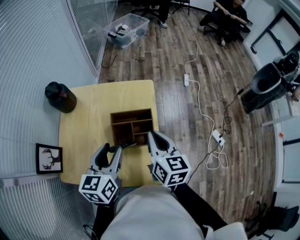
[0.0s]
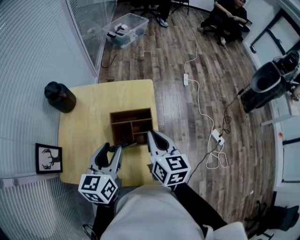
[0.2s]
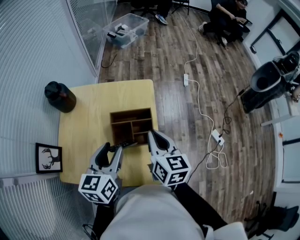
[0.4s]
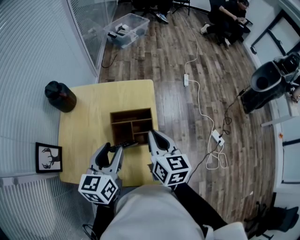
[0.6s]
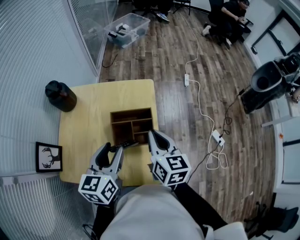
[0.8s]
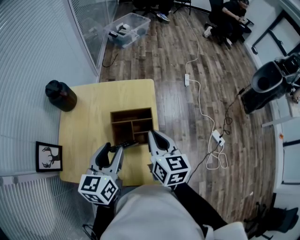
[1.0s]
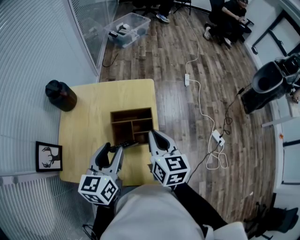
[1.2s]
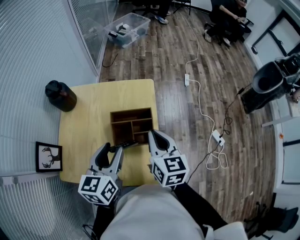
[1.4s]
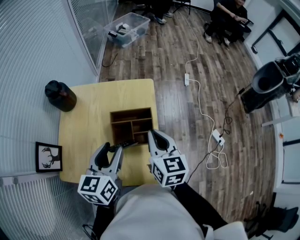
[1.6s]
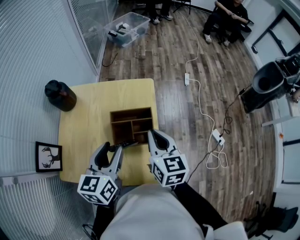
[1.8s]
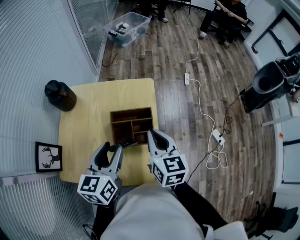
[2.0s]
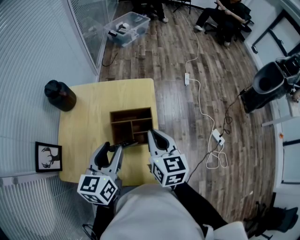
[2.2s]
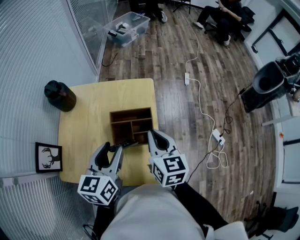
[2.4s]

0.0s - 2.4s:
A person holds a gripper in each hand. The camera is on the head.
0.0s - 1.2s: Neither gripper changes place.
1.2s - 2.4s: Neither gripper changes place.

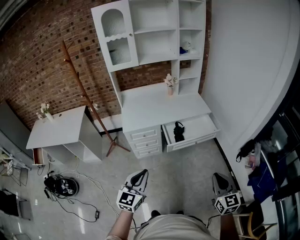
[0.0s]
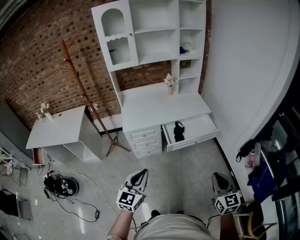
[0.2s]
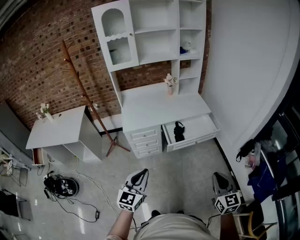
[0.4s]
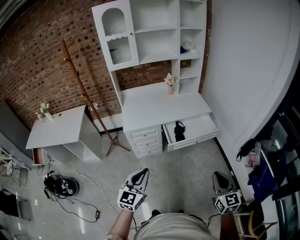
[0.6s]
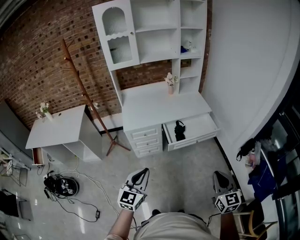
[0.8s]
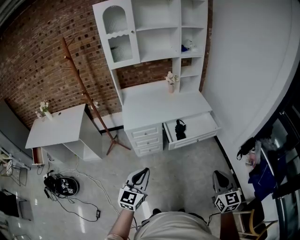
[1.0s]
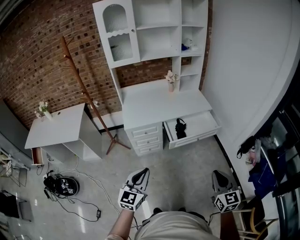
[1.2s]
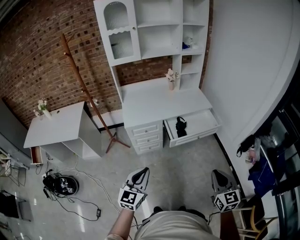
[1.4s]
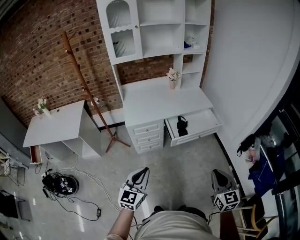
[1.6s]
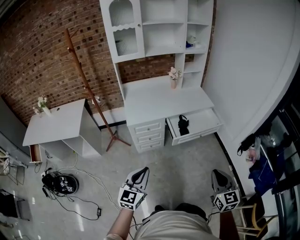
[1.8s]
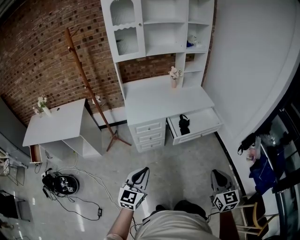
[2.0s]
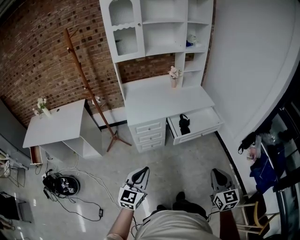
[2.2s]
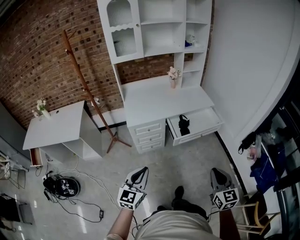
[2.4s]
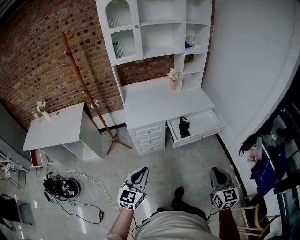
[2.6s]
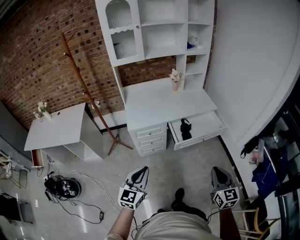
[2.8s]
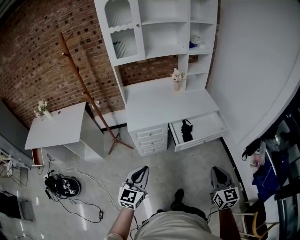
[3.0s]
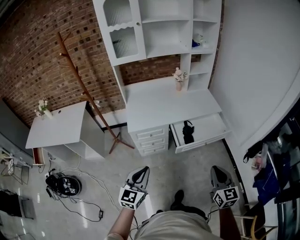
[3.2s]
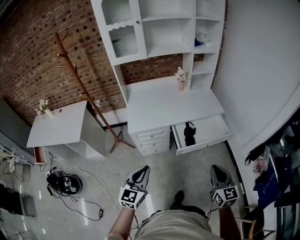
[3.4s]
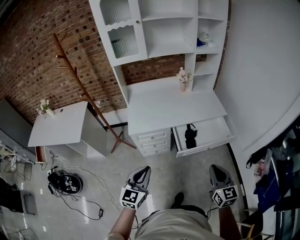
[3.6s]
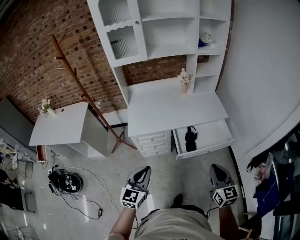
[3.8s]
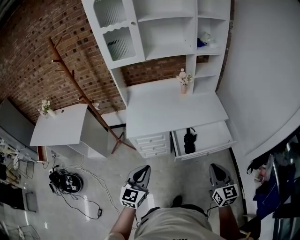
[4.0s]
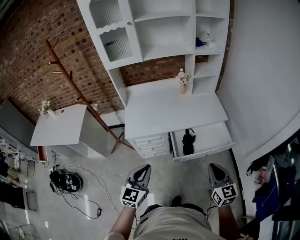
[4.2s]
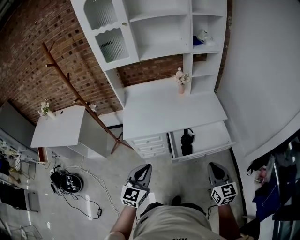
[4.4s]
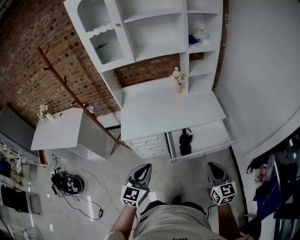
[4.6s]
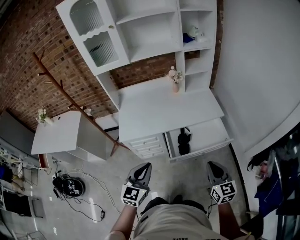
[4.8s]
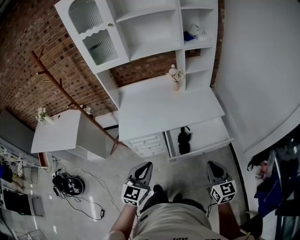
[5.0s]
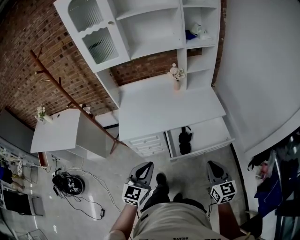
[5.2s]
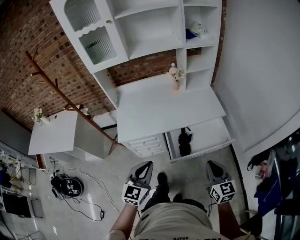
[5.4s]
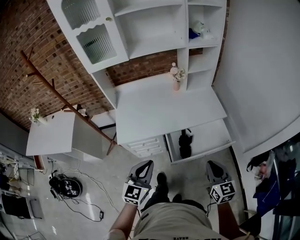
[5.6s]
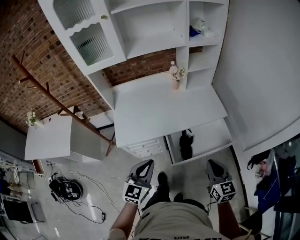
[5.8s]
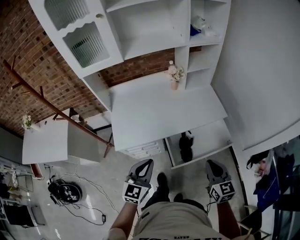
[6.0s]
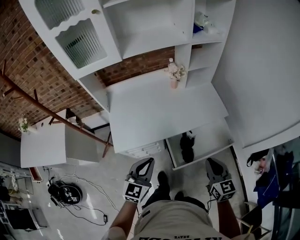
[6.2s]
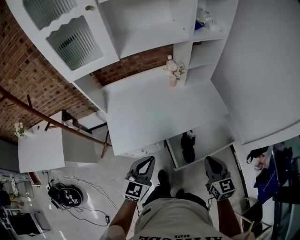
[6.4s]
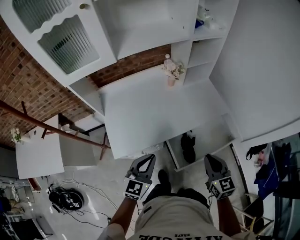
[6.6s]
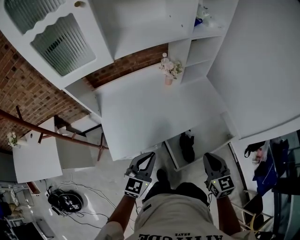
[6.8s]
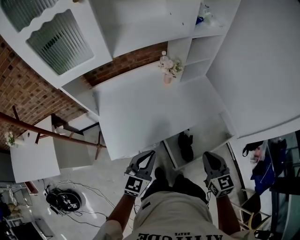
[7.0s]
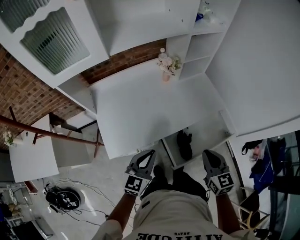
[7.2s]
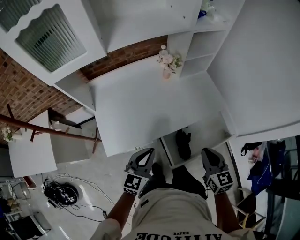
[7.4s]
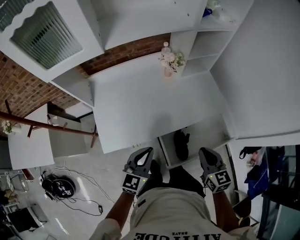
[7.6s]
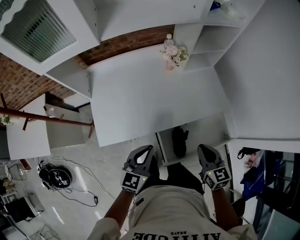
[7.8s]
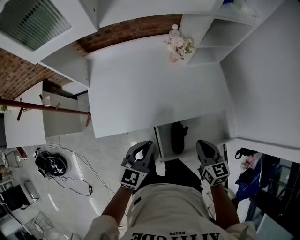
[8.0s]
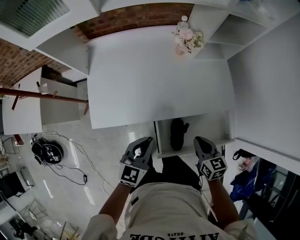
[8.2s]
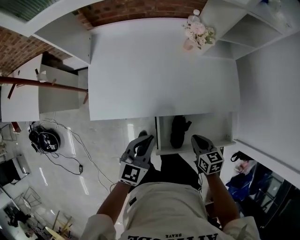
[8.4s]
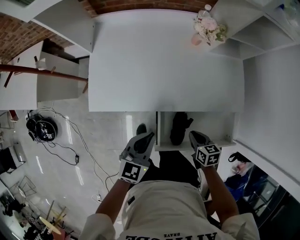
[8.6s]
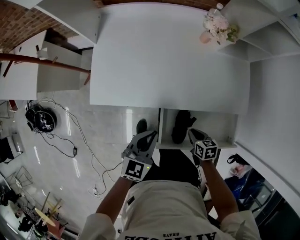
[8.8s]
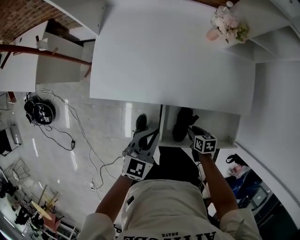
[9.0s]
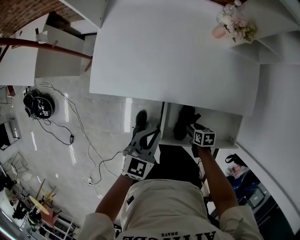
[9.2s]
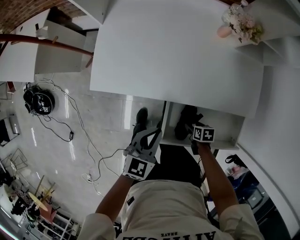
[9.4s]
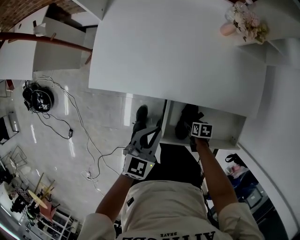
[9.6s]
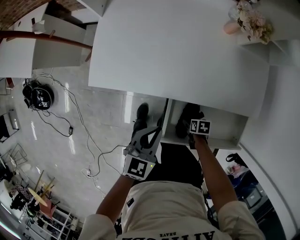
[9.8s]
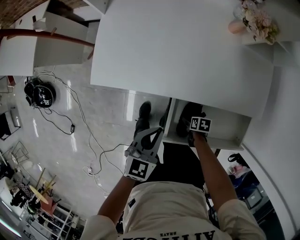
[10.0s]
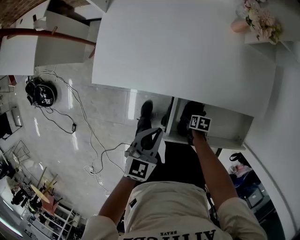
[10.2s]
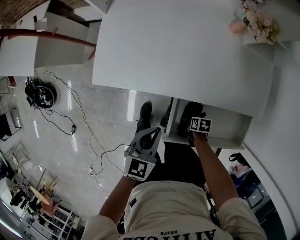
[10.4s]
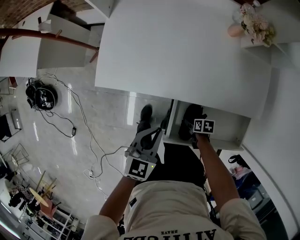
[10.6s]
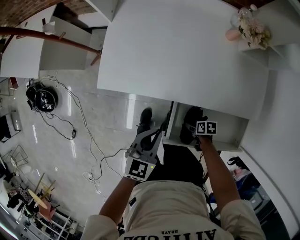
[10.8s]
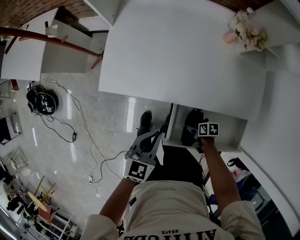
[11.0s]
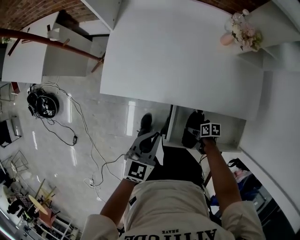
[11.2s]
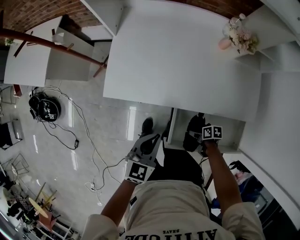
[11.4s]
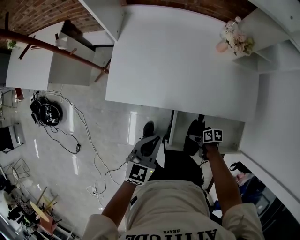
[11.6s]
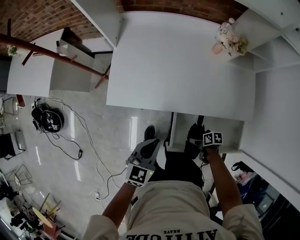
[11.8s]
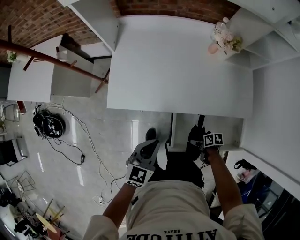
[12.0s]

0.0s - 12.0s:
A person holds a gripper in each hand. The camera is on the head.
0.0s - 1.6s: The grippers both shift to the left by some 5 cm.
1.6s - 3.0s: Both grippers travel together forward, approximately 10 cm.
3.0s - 4.4s: The left gripper travels forward and to the right by about 20 cm. Meanwhile the right gripper is displaced forward by roughly 20 cm.
4.4s - 6.0s: The two grippers go some 15 cm forward.
6.0s - 7.6s: The left gripper goes about 15 cm forward. The right gripper shifts about 15 cm forward and to the left.
7.6s - 9.0s: The right gripper is displaced downward by about 35 cm, and tilts its fingers approximately 40 degrees downward, while the left gripper travels downward by about 15 cm, and turns by some 20 degrees.
9.0s - 10.4s: The left gripper changes place by roughly 5 cm. Meanwhile the right gripper moves downward, about 15 cm, and opens.
10.4s - 12.0s: Both grippers move upward, some 10 cm.

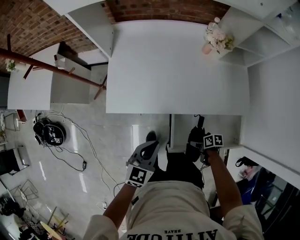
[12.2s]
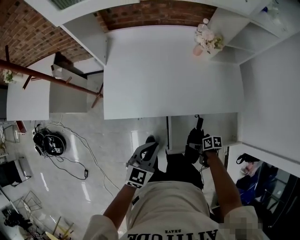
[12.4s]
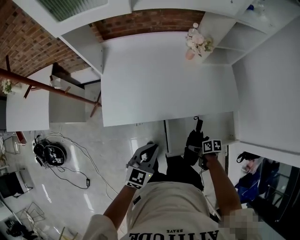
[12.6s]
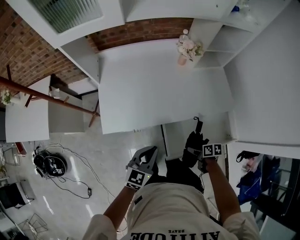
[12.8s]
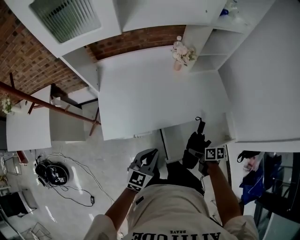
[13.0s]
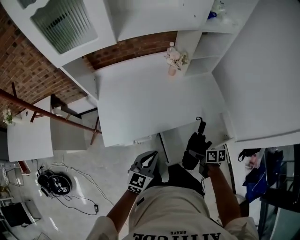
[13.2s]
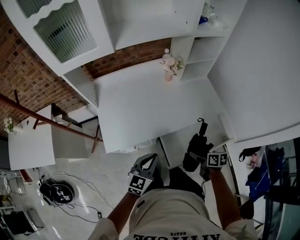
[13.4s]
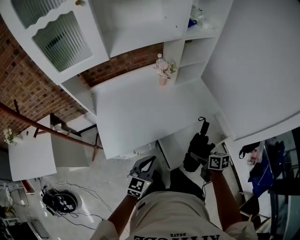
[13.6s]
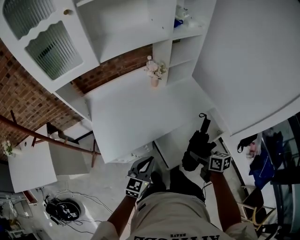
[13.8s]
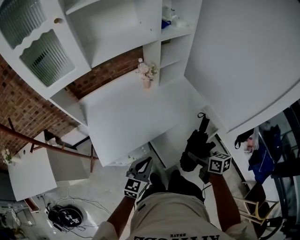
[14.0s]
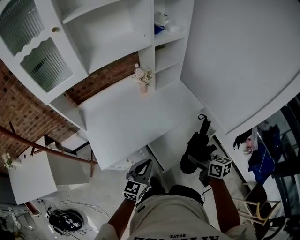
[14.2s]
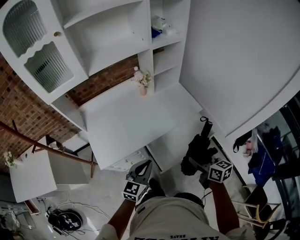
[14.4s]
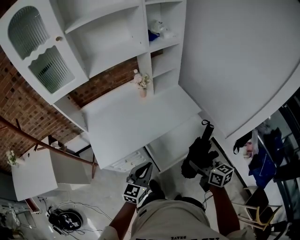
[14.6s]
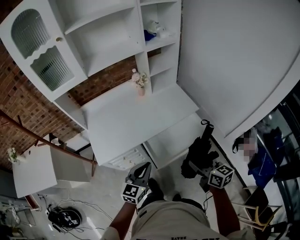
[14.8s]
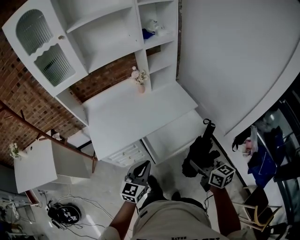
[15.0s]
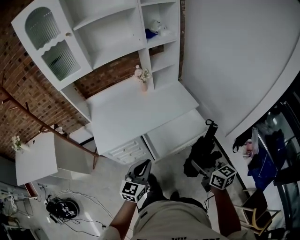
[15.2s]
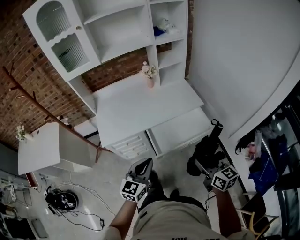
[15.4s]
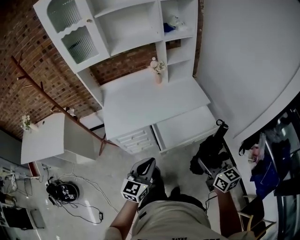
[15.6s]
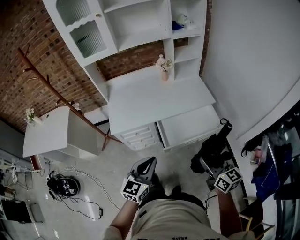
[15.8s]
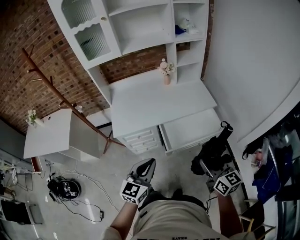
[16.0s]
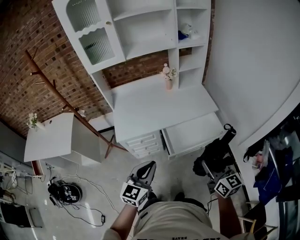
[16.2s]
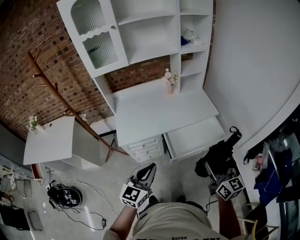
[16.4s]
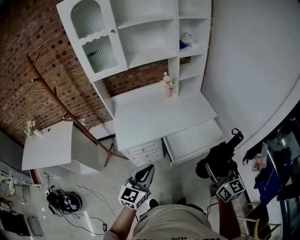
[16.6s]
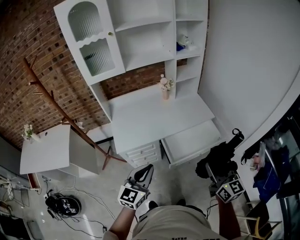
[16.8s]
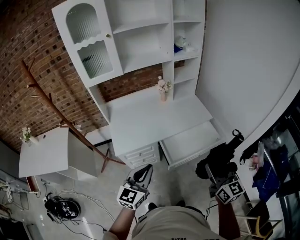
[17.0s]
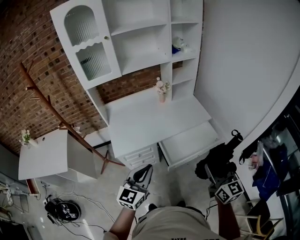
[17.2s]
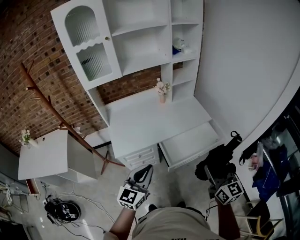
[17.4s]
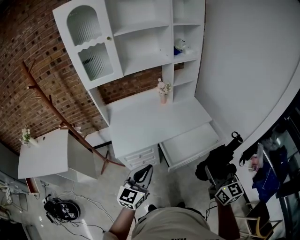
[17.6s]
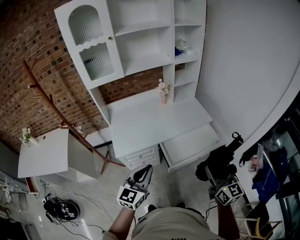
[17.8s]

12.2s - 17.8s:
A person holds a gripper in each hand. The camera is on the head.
12.2s - 13.6s: The right gripper shifts approximately 25 cm upward, and changes its angle by some 50 degrees; the left gripper travels upward by roughly 5 cm, and turns by approximately 20 degrees.
13.6s - 15.0s: The left gripper moves to the right, backward and upward, about 15 cm; the right gripper travels upward, backward and to the right by approximately 25 cm, and rotates about 30 degrees.
15.0s - 16.4s: The left gripper moves backward, upward and to the left, about 15 cm; the right gripper shifts some 10 cm upward and backward.
16.4s - 17.8s: The left gripper moves some 5 cm.

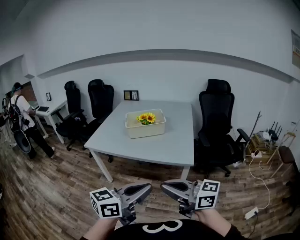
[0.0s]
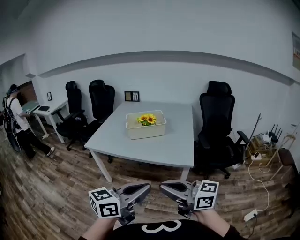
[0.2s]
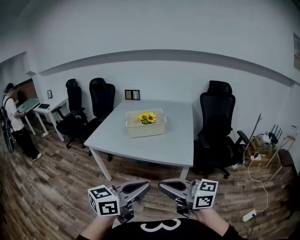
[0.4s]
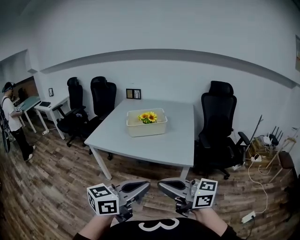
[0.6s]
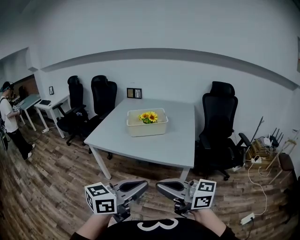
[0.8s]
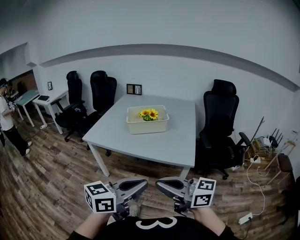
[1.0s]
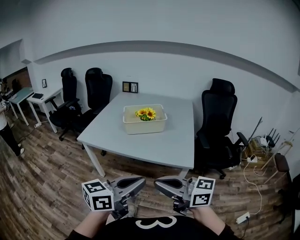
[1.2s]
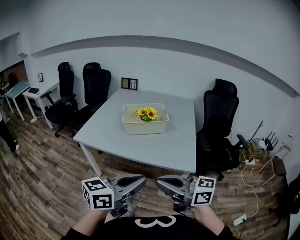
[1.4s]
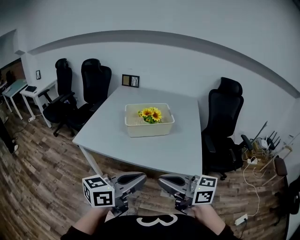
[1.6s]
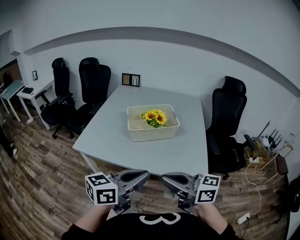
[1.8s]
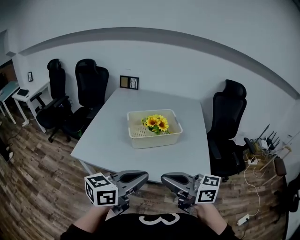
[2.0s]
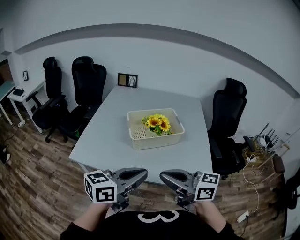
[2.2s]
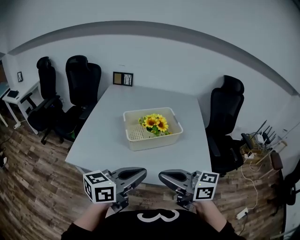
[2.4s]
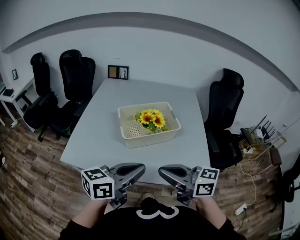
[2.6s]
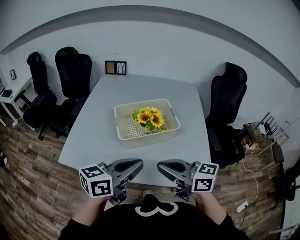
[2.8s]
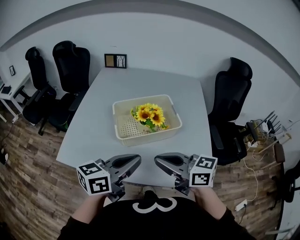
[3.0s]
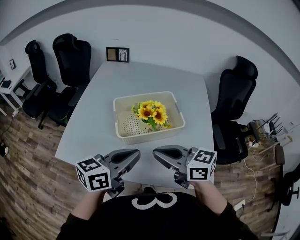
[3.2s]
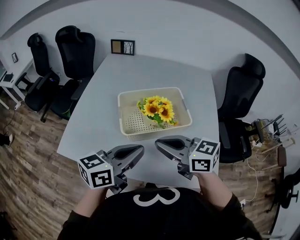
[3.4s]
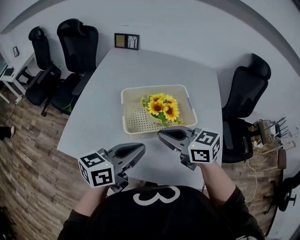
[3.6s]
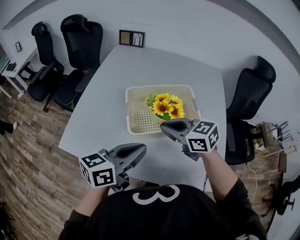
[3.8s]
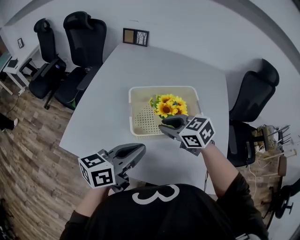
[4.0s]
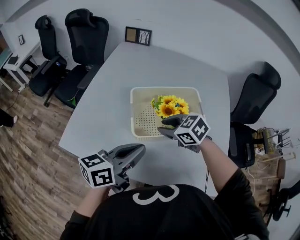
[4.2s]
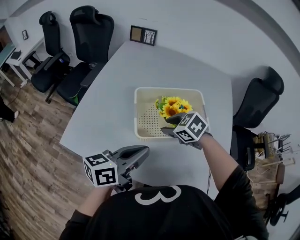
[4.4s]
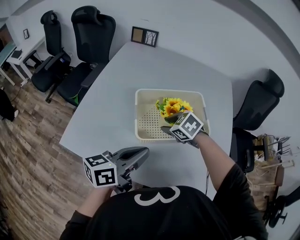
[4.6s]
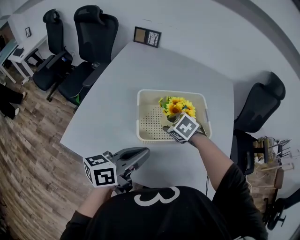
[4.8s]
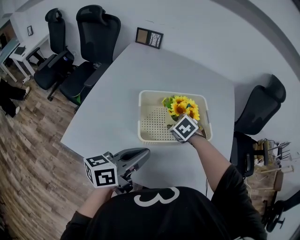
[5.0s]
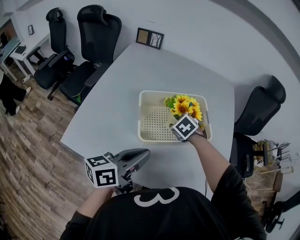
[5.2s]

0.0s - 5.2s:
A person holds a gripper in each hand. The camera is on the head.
0.0s - 1.8s: The two grippers go some 25 cm forward.
1.8s - 3.4s: The grippers both shift forward by roughly 25 cm.
3.4s - 5.2s: The right gripper moves forward and downward, some 25 cm, tilts its fingers roughly 50 degrees downward, and opens up. Meanwhile the left gripper changes place by approximately 5 cm.
